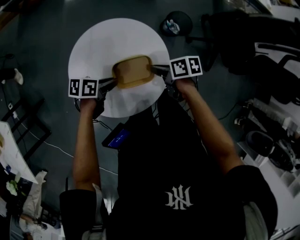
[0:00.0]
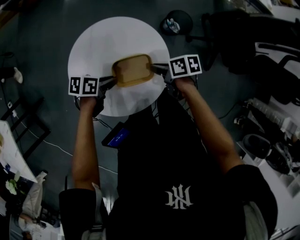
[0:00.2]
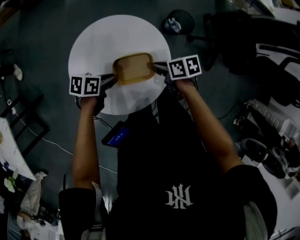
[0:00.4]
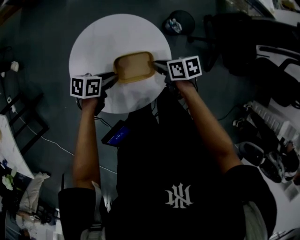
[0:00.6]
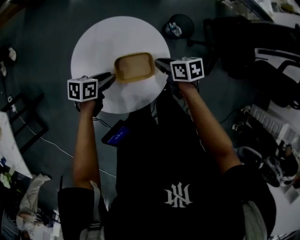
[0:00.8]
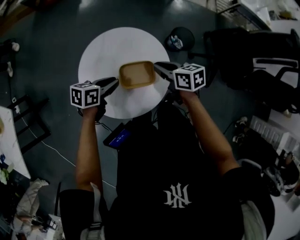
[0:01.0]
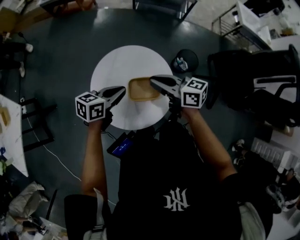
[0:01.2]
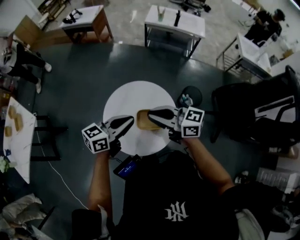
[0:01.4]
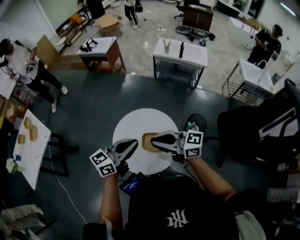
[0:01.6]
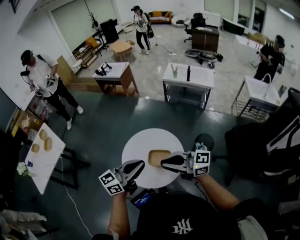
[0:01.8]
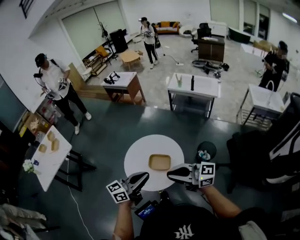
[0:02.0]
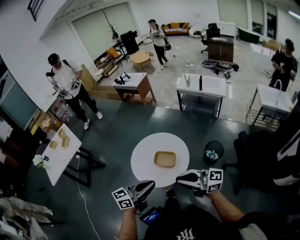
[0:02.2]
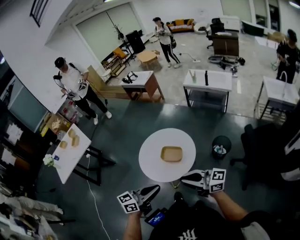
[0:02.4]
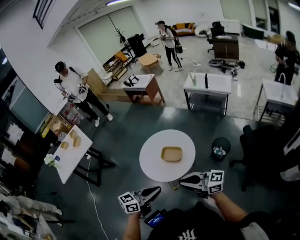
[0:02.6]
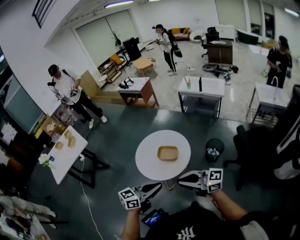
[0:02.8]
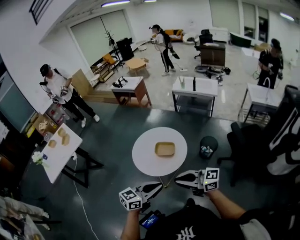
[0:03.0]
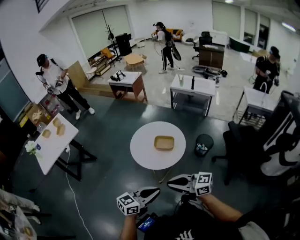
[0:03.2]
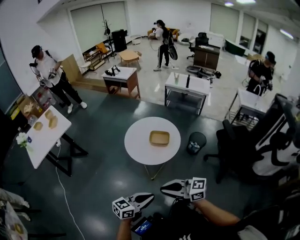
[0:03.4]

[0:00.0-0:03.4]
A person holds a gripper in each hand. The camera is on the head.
0.0 to 1.6 s: Both grippers move upward, roughly 30 cm. The left gripper tilts its fingers roughly 40 degrees upward. Meanwhile the right gripper tips its fingers upward by about 50 degrees.
1.6 to 3.4 s: The left gripper shifts by about 40 cm. Meanwhile the right gripper changes place by about 35 cm.

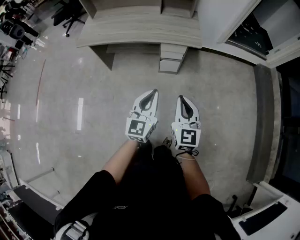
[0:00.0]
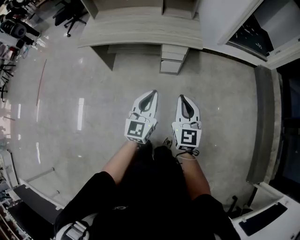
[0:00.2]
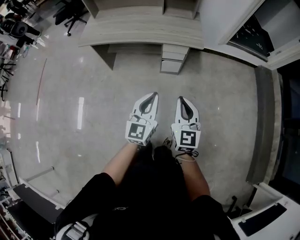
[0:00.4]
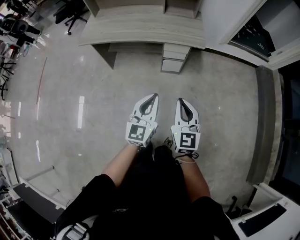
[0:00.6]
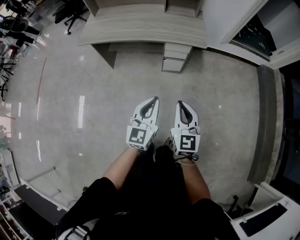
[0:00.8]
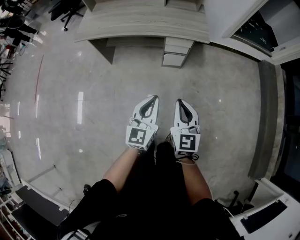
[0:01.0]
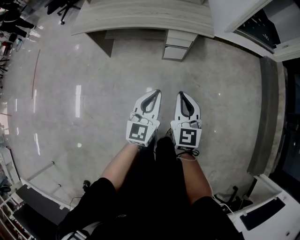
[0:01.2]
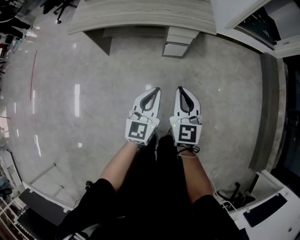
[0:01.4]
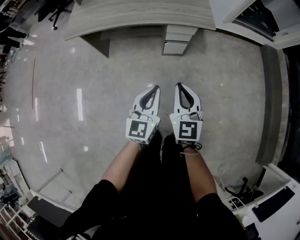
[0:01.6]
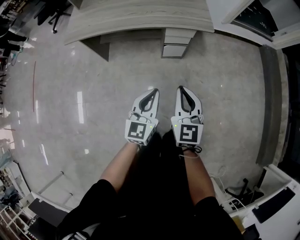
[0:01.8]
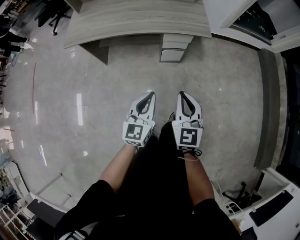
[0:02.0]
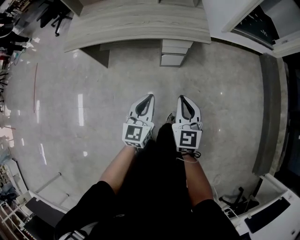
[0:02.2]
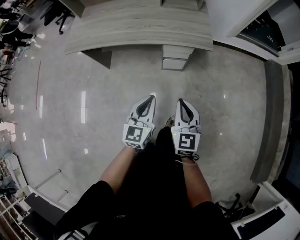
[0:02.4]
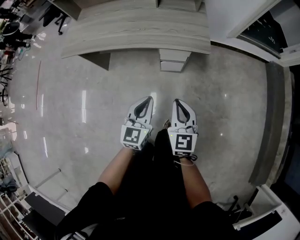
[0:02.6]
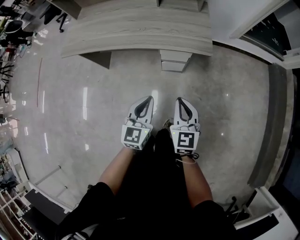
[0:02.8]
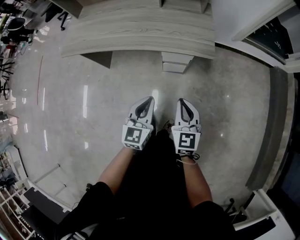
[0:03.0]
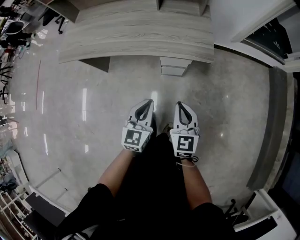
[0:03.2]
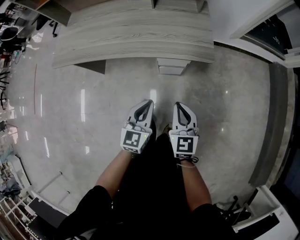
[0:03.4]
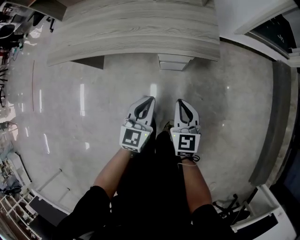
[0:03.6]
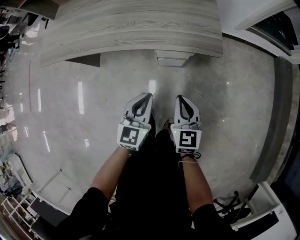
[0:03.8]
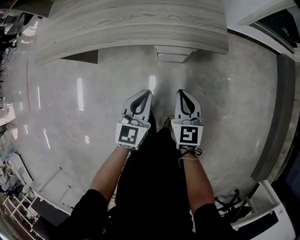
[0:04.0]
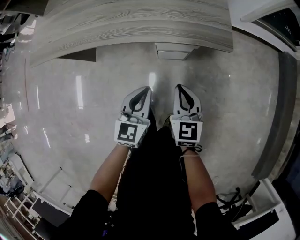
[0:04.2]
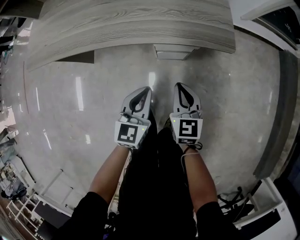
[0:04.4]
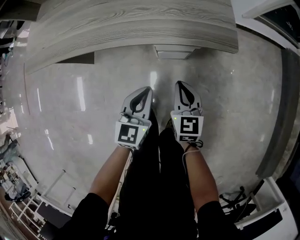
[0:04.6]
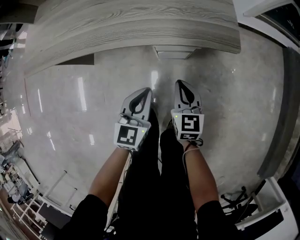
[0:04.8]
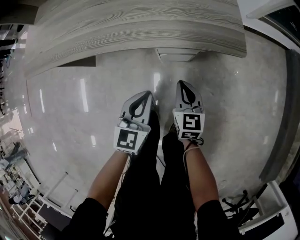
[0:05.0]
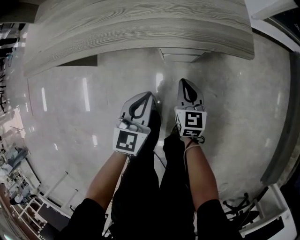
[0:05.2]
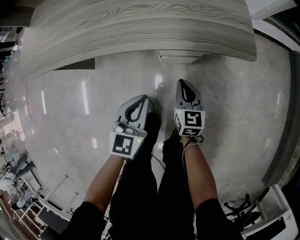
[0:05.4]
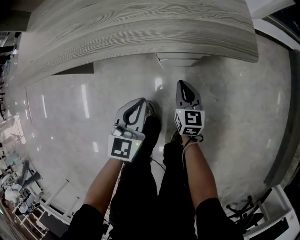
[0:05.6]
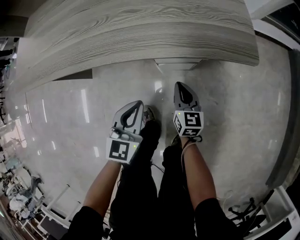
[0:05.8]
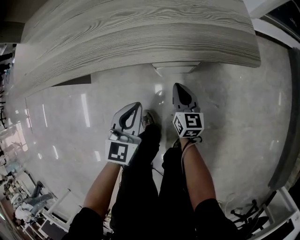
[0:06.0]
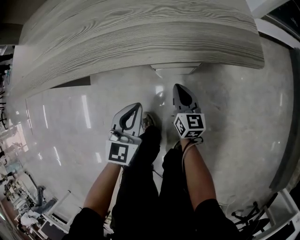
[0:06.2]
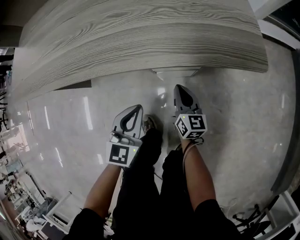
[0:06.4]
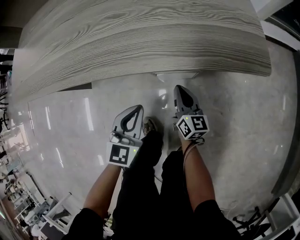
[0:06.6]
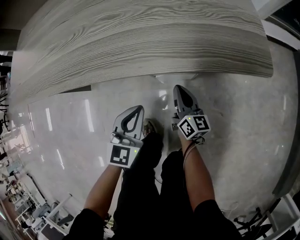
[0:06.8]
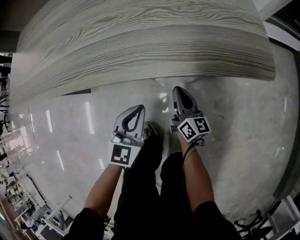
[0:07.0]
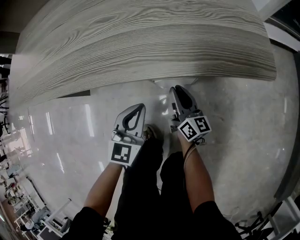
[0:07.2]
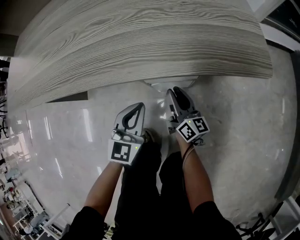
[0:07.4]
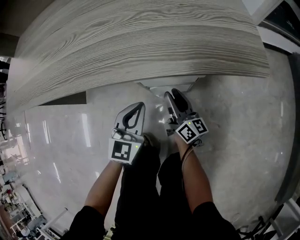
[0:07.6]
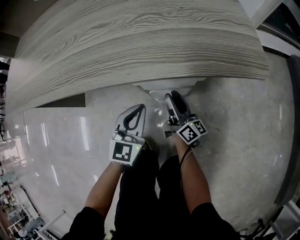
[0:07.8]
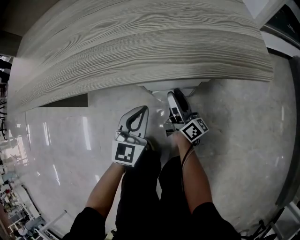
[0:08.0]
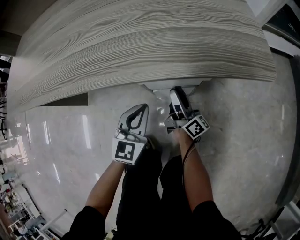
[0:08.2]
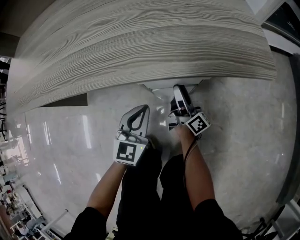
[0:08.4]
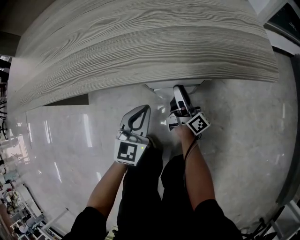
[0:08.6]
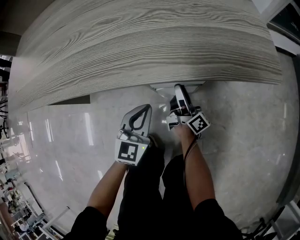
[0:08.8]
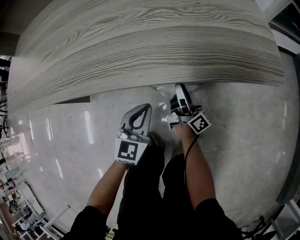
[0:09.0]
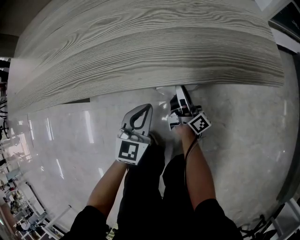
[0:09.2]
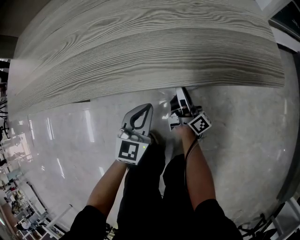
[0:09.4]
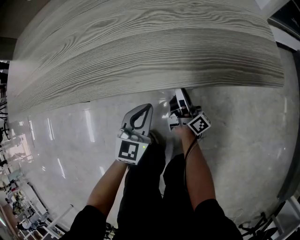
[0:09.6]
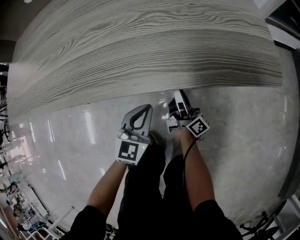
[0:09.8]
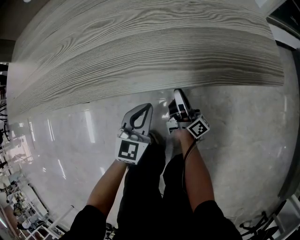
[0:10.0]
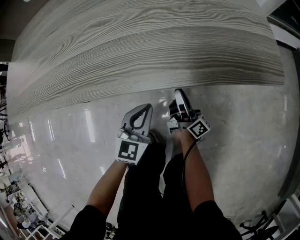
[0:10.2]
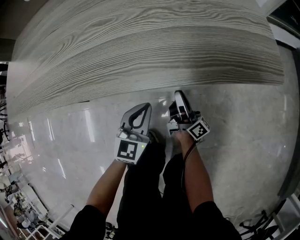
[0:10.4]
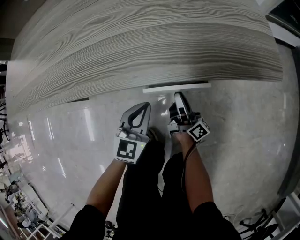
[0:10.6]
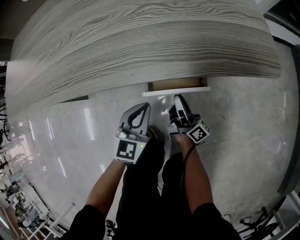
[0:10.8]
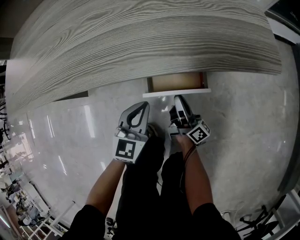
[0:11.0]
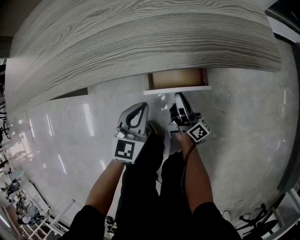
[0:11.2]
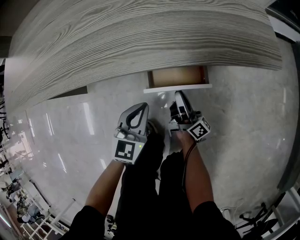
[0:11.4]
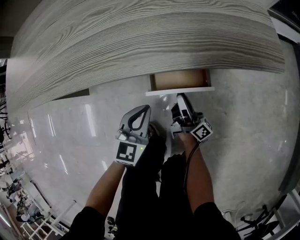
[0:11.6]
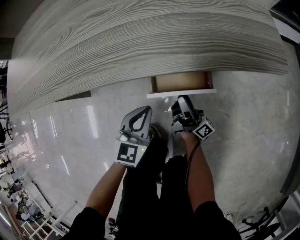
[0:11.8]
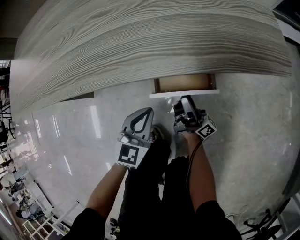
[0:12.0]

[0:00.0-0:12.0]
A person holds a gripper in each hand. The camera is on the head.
0.0 to 1.6 s: The right gripper shifts roughly 10 cm to the left and downward. Meanwhile the left gripper shifts approximately 10 cm downward and to the left.
1.6 to 3.0 s: The right gripper travels forward, to the right and downward by about 20 cm. The left gripper travels forward and to the right by roughly 15 cm.
3.0 to 4.4 s: The grippers both shift downward and forward by about 20 cm.
4.4 to 6.0 s: The left gripper is displaced downward and forward by some 15 cm, while the right gripper travels downward and forward by about 20 cm.
6.0 to 7.6 s: The left gripper goes some 10 cm downward and forward. The right gripper moves forward and downward, approximately 10 cm, rotates about 30 degrees, and opens its fingers.
7.6 to 9.0 s: The right gripper swivels approximately 30 degrees.
9.0 to 10.4 s: There are only small adjustments of the grippers.
10.4 to 12.0 s: The right gripper opens up.

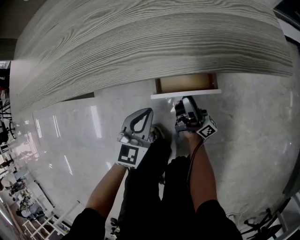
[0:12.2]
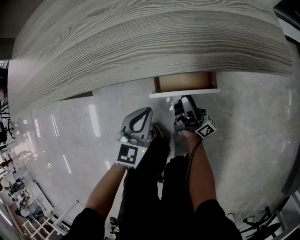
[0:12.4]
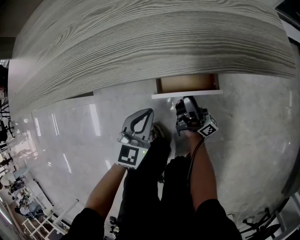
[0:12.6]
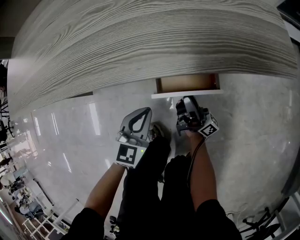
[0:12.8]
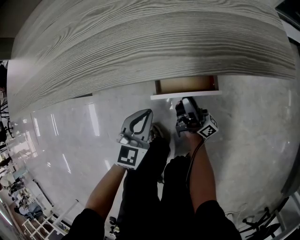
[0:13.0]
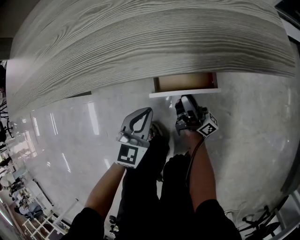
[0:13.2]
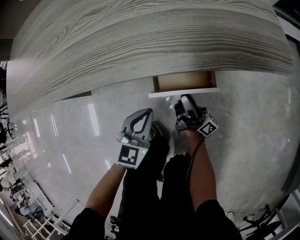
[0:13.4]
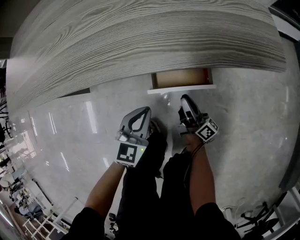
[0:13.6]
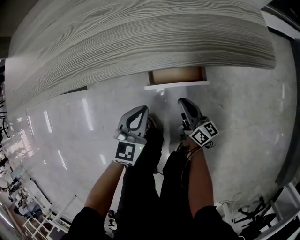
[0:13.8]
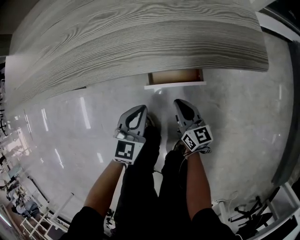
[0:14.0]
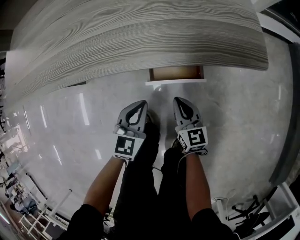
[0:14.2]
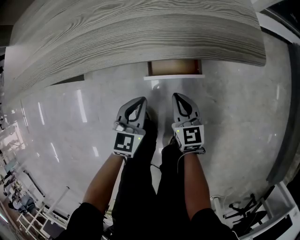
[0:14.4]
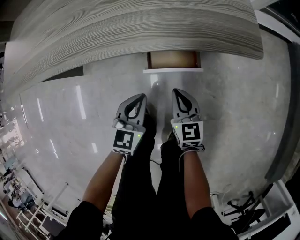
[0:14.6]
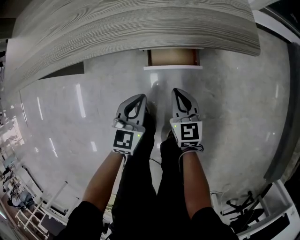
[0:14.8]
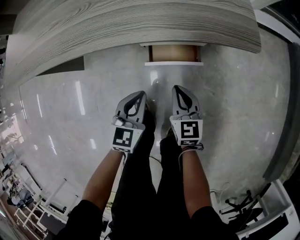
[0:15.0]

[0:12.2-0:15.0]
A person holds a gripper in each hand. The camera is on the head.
12.2 to 13.6 s: The right gripper turns by about 20 degrees.
13.6 to 15.0 s: The right gripper is displaced upward by roughly 10 cm, and rotates around the line of its fingers by about 60 degrees, counterclockwise from behind. Meanwhile the left gripper heads upward, covering about 5 cm.

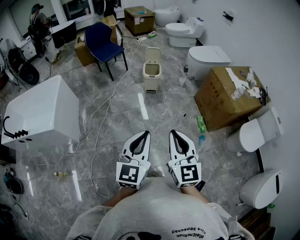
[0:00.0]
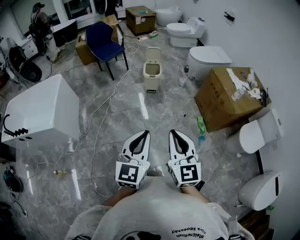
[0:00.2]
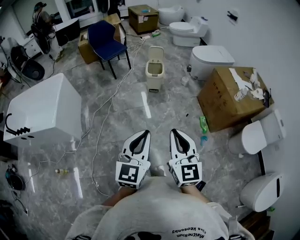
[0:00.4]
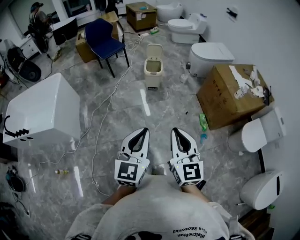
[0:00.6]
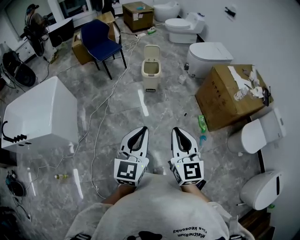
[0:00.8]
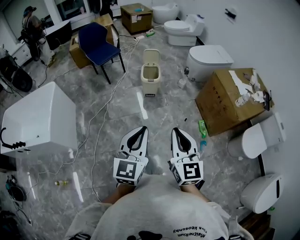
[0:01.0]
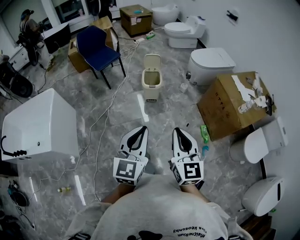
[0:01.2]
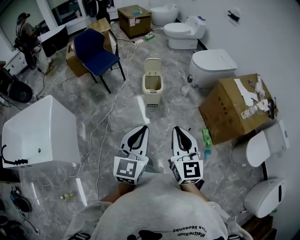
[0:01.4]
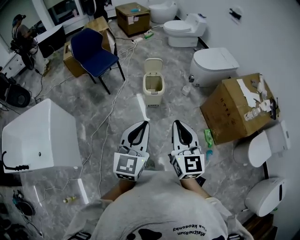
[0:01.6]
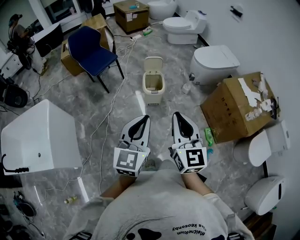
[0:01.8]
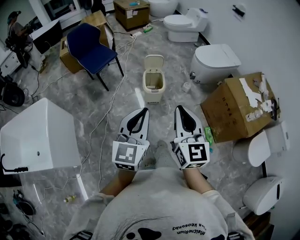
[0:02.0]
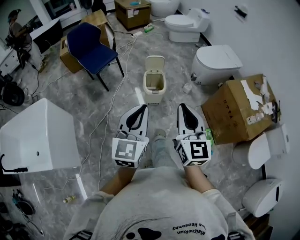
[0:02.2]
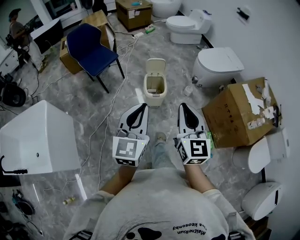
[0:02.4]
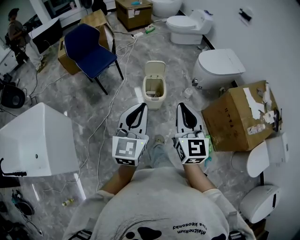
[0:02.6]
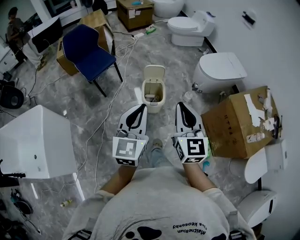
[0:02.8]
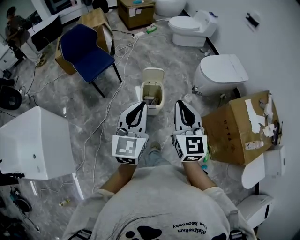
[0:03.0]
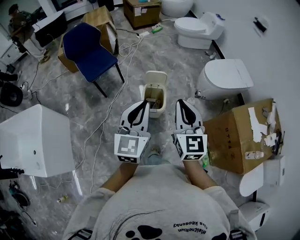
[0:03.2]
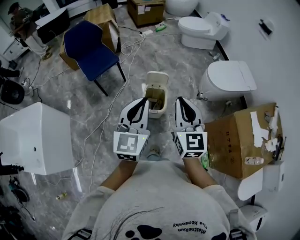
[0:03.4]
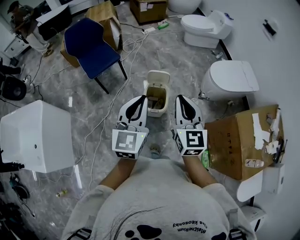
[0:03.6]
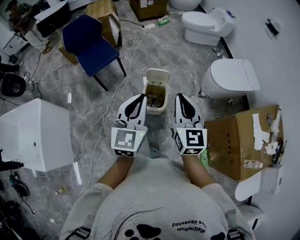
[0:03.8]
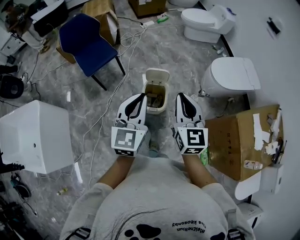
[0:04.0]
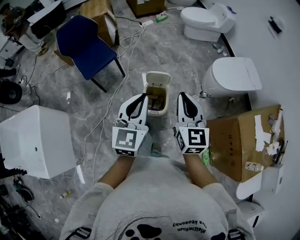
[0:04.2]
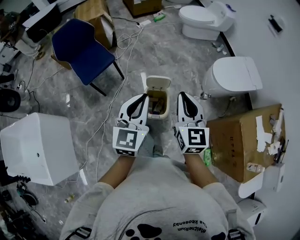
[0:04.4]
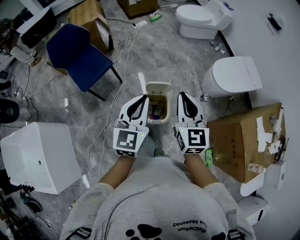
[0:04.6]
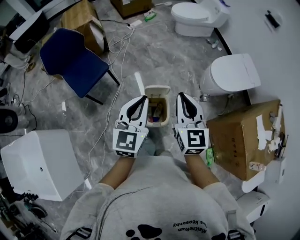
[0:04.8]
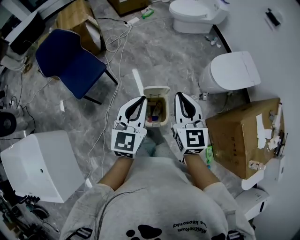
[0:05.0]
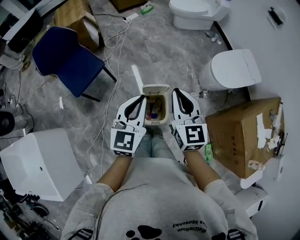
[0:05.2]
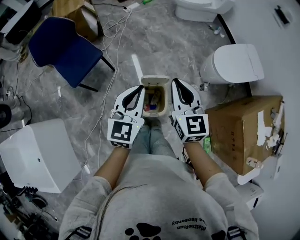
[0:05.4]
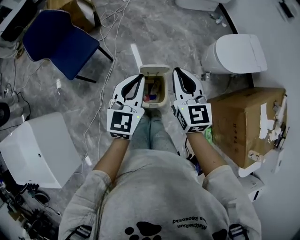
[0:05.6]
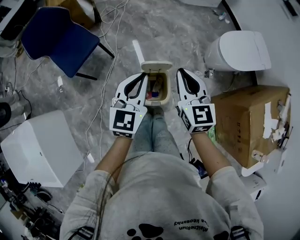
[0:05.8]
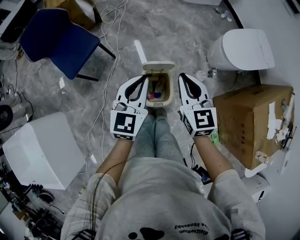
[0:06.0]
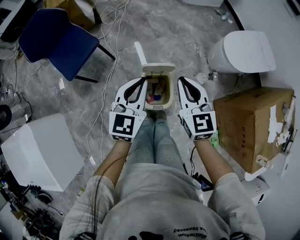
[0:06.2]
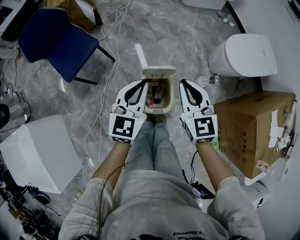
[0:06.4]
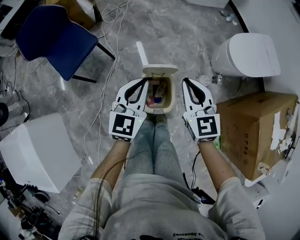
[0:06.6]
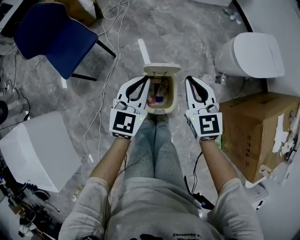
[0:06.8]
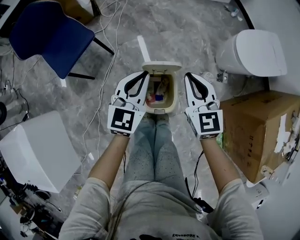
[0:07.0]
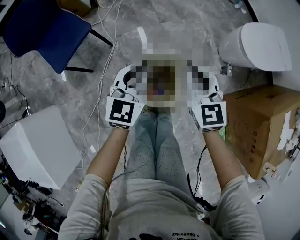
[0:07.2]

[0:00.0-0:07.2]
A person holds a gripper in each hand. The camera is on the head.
0.0 to 1.4 s: Both grippers move forward, roughly 35 cm.
1.4 to 2.8 s: The grippers both shift forward by about 35 cm.
2.8 to 4.4 s: Both grippers move forward, about 35 cm.
4.4 to 5.8 s: Both grippers move forward and downward, about 20 cm.
5.8 to 7.2 s: The two grippers go approximately 20 cm downward.
